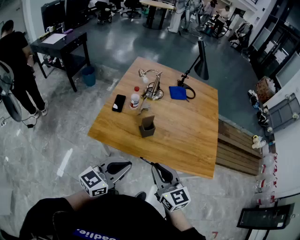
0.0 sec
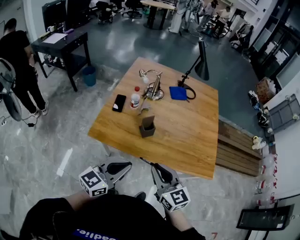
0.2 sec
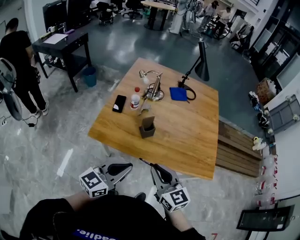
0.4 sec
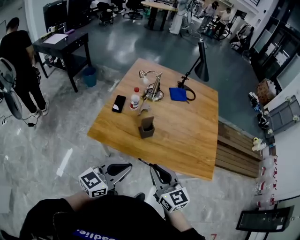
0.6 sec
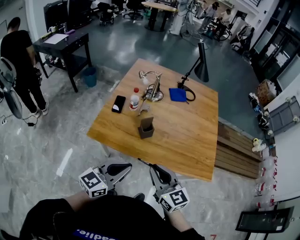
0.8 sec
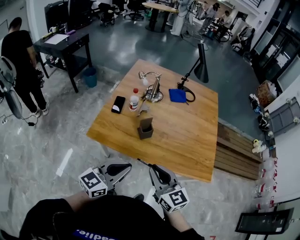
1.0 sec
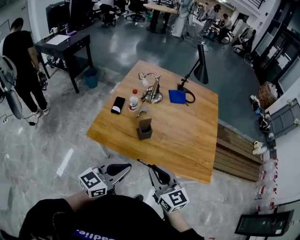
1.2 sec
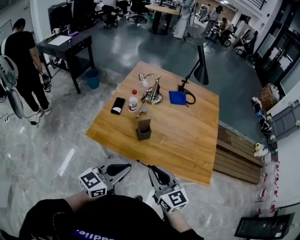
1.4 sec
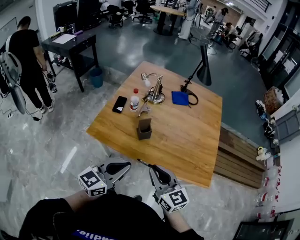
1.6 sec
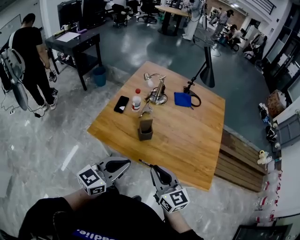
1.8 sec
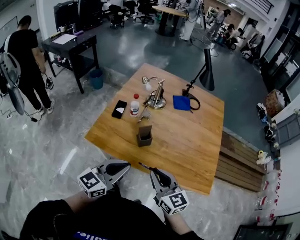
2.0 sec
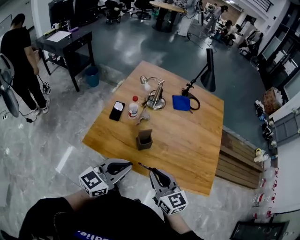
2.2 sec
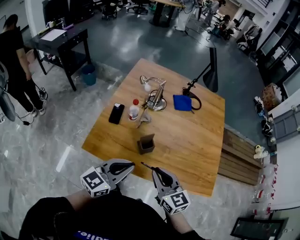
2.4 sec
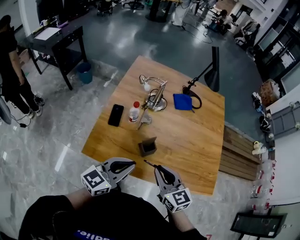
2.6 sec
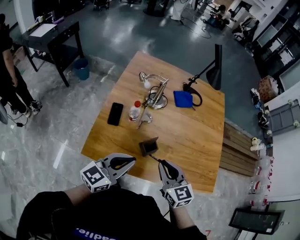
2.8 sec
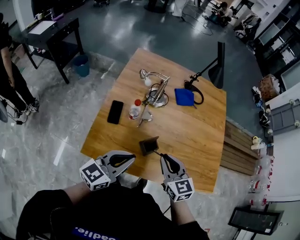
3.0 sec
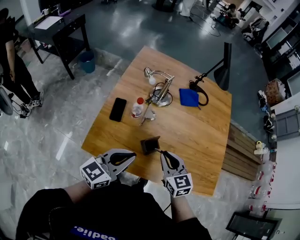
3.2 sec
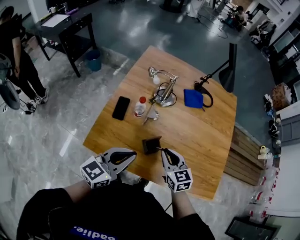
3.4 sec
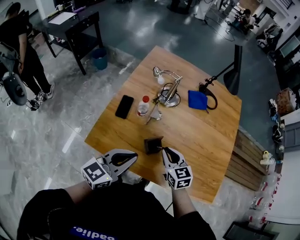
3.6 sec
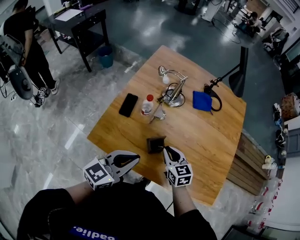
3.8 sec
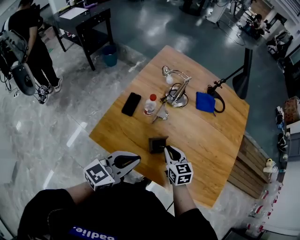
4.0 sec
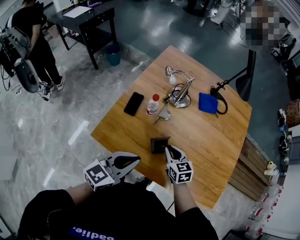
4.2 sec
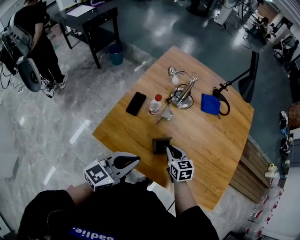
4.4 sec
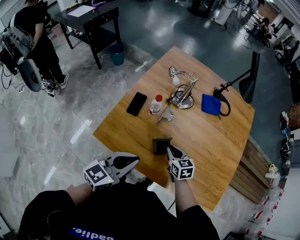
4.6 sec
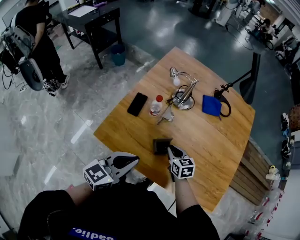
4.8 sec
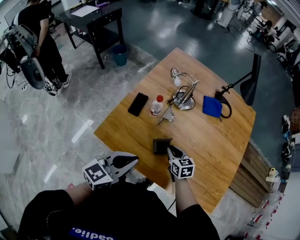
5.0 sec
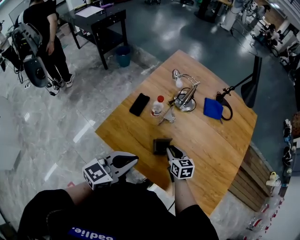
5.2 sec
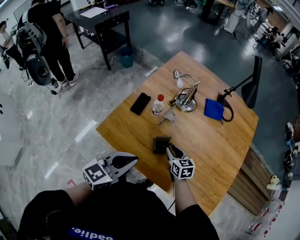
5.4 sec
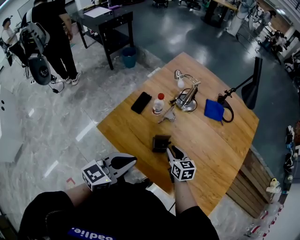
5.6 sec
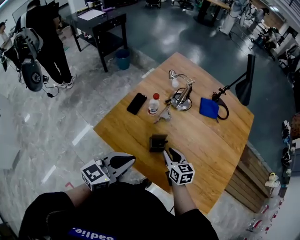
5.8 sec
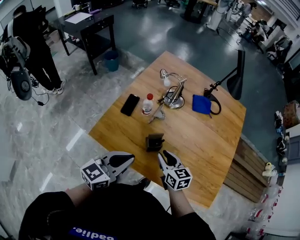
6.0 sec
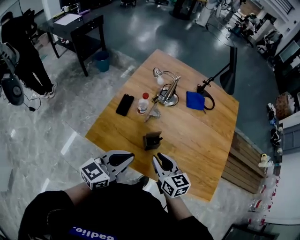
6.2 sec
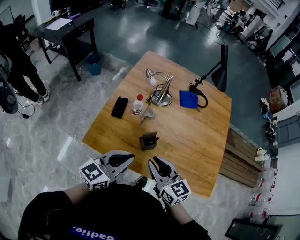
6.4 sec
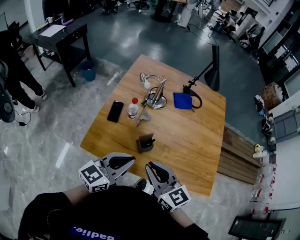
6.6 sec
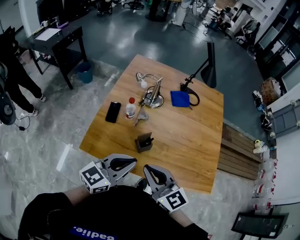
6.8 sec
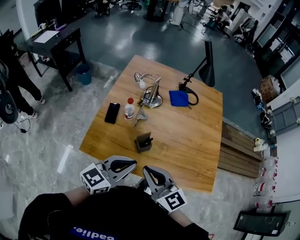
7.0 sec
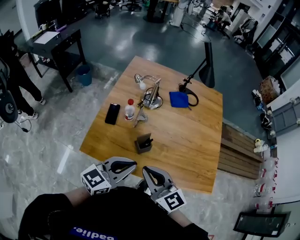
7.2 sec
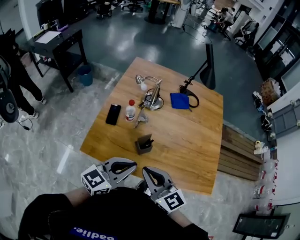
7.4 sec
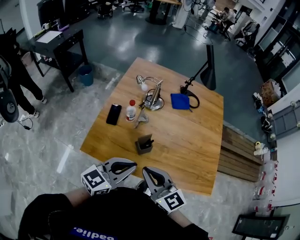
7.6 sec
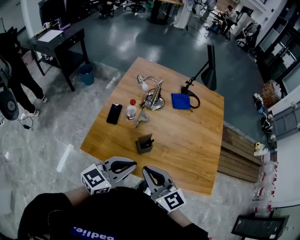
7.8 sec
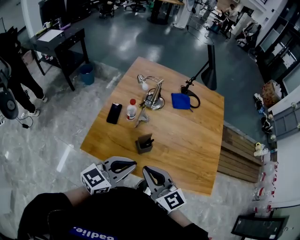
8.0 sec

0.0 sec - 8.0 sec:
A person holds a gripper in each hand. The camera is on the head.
0.0 sec - 1.6 sec: The left gripper moves to the right, approximately 5 cm; the right gripper ends up approximately 5 cm from where it was.
1.6 sec - 3.2 sec: The left gripper moves forward and to the left, roughly 20 cm; the right gripper is displaced forward by roughly 25 cm, and changes its angle by approximately 20 degrees.
3.2 sec - 4.8 sec: The right gripper travels downward and forward by approximately 15 cm.
4.8 sec - 6.4 sec: The left gripper shifts by about 5 cm; the right gripper heads upward and backward, covering approximately 25 cm, and changes its angle by some 20 degrees.
6.4 sec - 8.0 sec: The right gripper ends up some 5 cm from where it was, and closes.

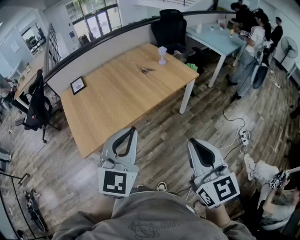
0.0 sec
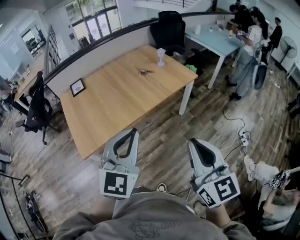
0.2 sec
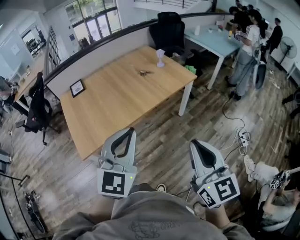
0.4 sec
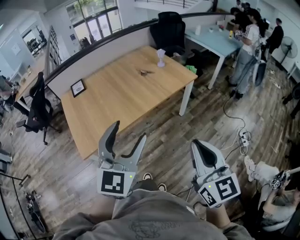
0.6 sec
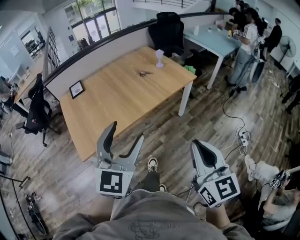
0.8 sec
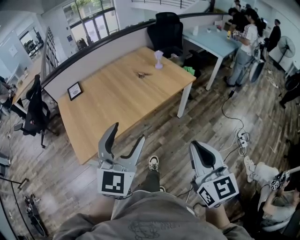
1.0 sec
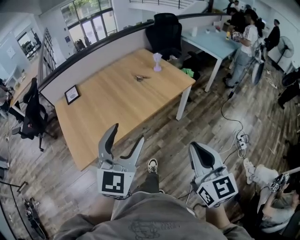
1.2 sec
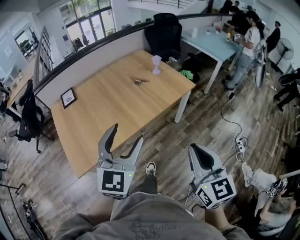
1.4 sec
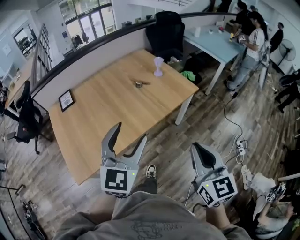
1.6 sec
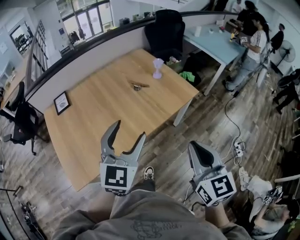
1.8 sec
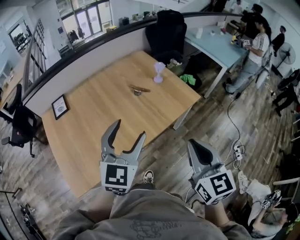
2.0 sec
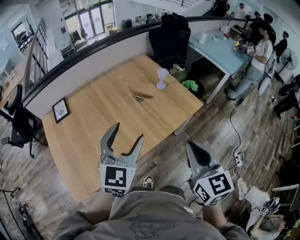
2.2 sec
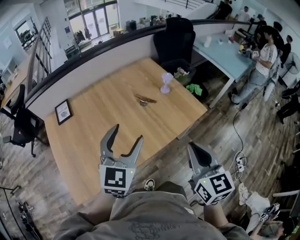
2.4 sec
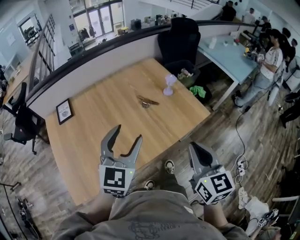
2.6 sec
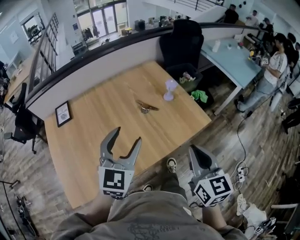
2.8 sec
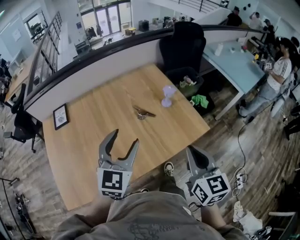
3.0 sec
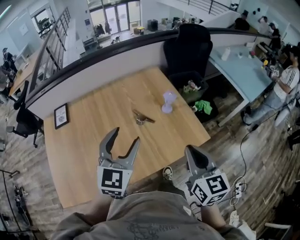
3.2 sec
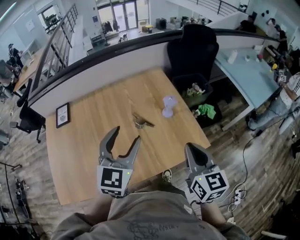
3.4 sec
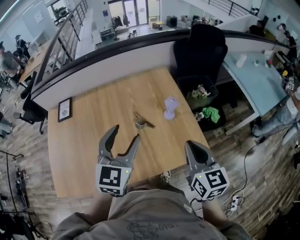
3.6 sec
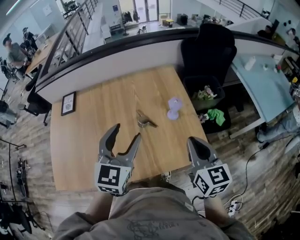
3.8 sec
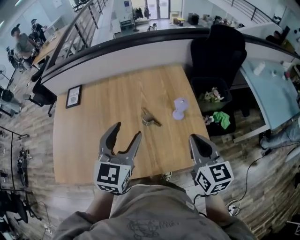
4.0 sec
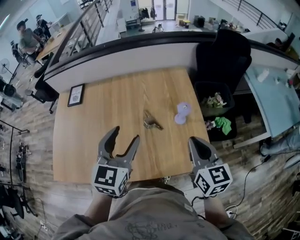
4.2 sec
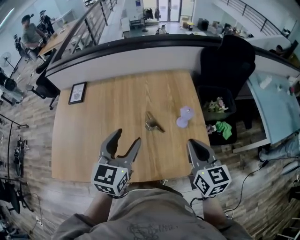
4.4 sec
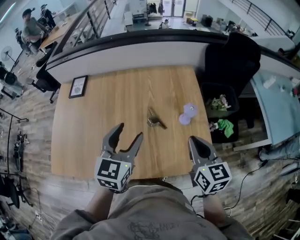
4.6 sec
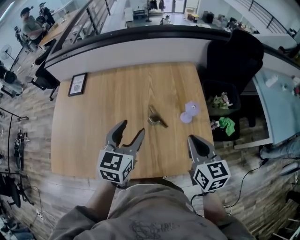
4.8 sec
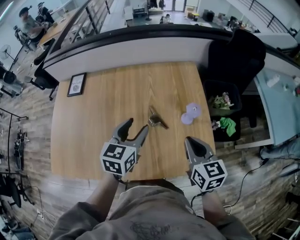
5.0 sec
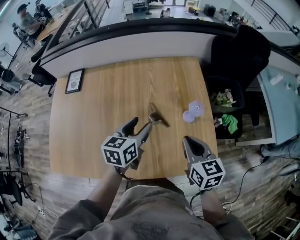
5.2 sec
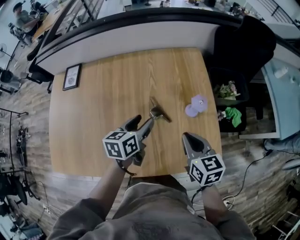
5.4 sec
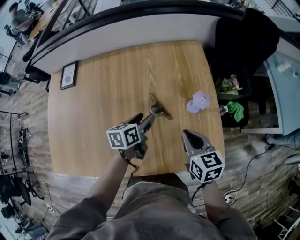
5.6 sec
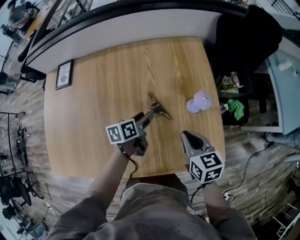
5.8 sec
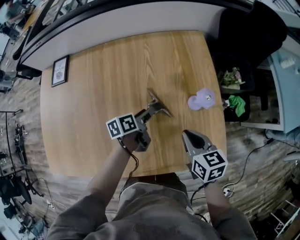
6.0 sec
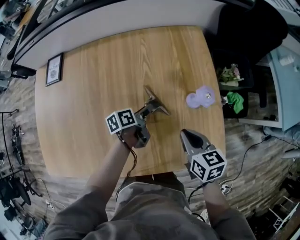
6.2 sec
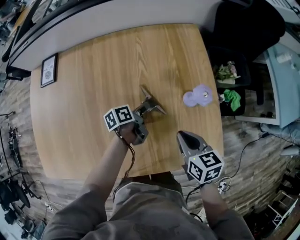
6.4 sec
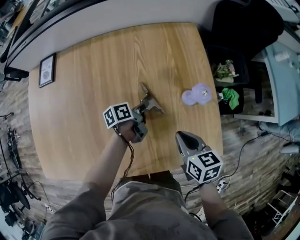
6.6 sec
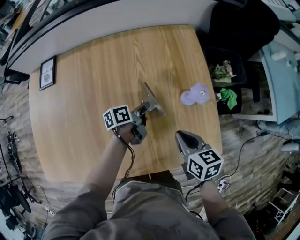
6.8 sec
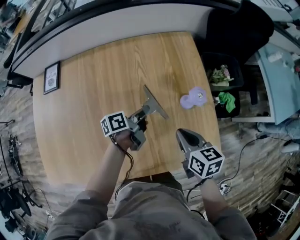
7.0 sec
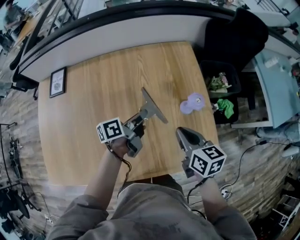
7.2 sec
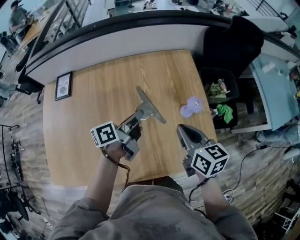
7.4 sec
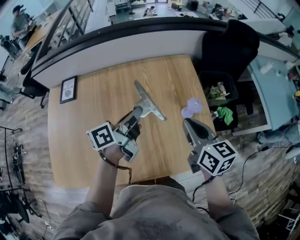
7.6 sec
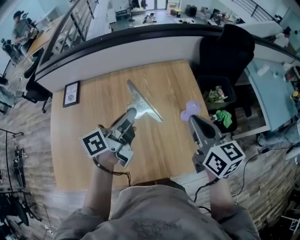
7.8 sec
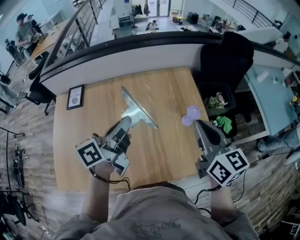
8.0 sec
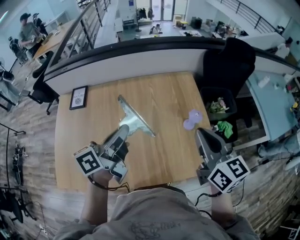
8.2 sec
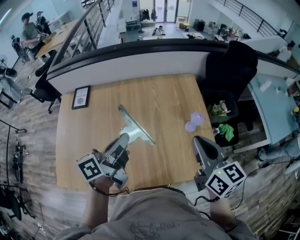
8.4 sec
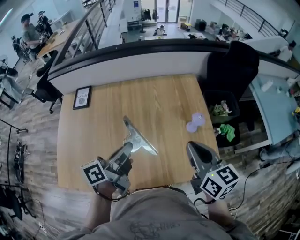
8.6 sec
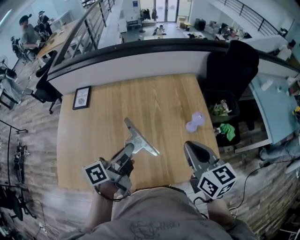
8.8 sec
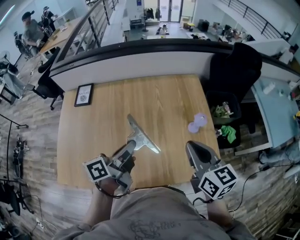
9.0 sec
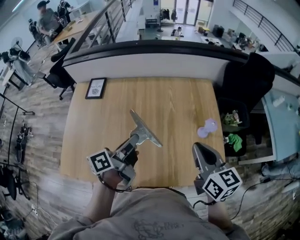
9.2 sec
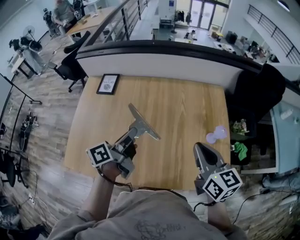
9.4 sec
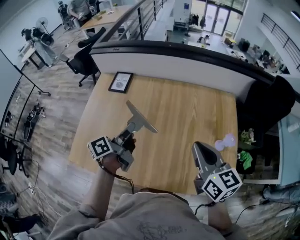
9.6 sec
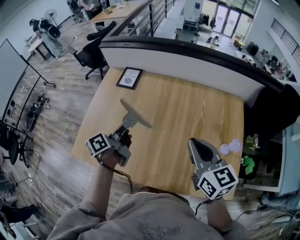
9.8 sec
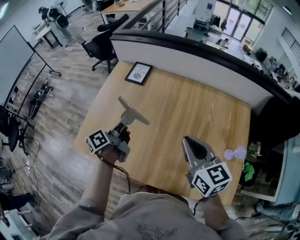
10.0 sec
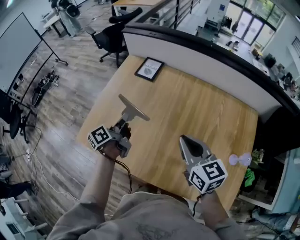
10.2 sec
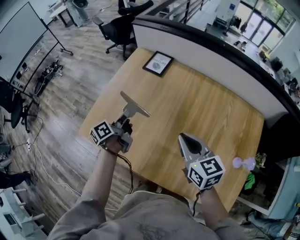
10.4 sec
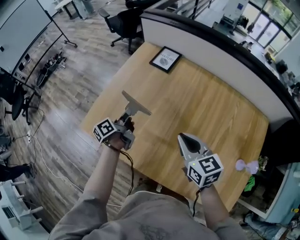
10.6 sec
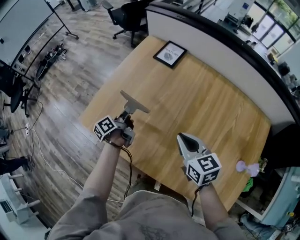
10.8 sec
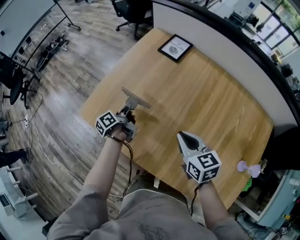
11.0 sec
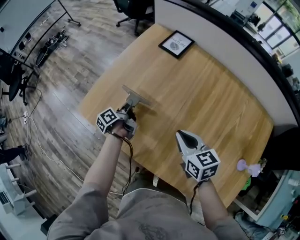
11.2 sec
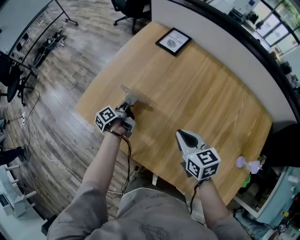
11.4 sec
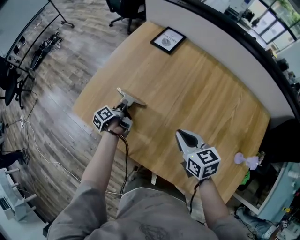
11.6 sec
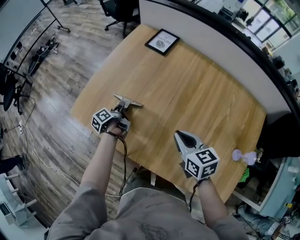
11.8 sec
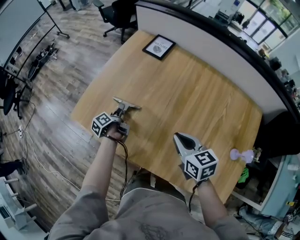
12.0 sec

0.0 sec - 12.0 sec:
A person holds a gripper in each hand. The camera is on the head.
0.0 sec - 1.6 sec: The two grippers go roughly 20 cm forward. The left gripper opens.
1.6 sec - 3.0 sec: The two grippers go some 30 cm forward.
3.0 sec - 4.4 sec: The right gripper heads forward and to the right, covering approximately 25 cm, and swivels about 30 degrees. Meanwhile the left gripper moves forward and to the right, roughly 15 cm, and changes its angle by about 30 degrees.
4.4 sec - 6.0 sec: The left gripper shifts approximately 35 cm downward and forward, and twists roughly 60 degrees counterclockwise, seen from behind, while the right gripper is displaced downward and forward by some 20 cm, and rotates roughly 20 degrees.
6.0 sec - 7.6 sec: Both grippers travel together upward, roughly 20 cm. The left gripper rotates approximately 30 degrees, and closes up.
7.6 sec - 9.0 sec: The right gripper goes some 10 cm backward and upward. The left gripper is displaced backward and to the left by approximately 15 cm.
9.0 sec - 10.4 sec: The right gripper moves about 35 cm, and swivels approximately 40 degrees. Meanwhile the left gripper ends up roughly 40 cm from where it was, and rotates some 50 degrees.
10.4 sec - 12.0 sec: The right gripper is displaced downward by some 10 cm, while the left gripper shifts approximately 15 cm downward, rotates about 30 degrees, and opens its fingers.

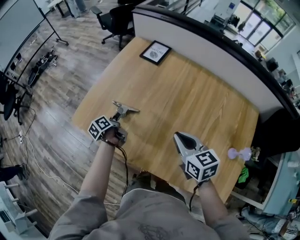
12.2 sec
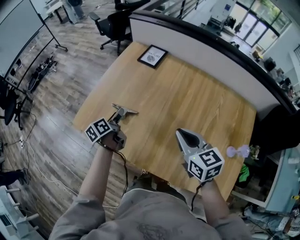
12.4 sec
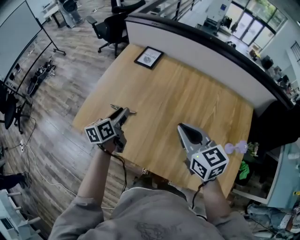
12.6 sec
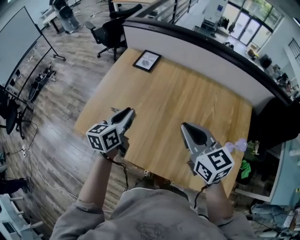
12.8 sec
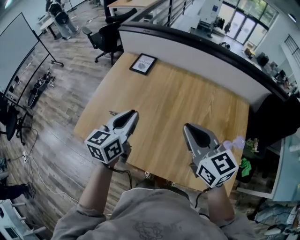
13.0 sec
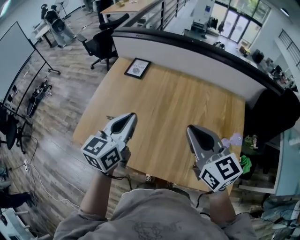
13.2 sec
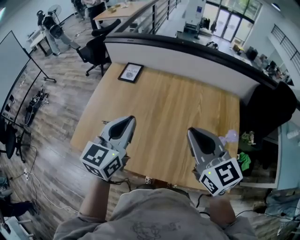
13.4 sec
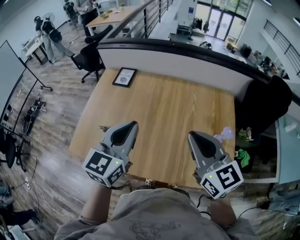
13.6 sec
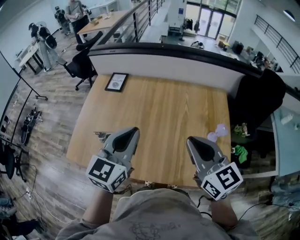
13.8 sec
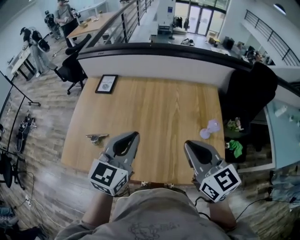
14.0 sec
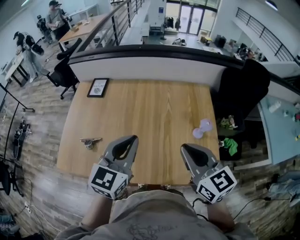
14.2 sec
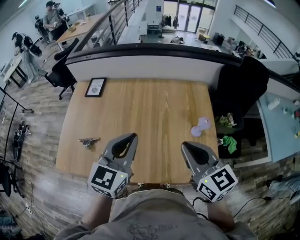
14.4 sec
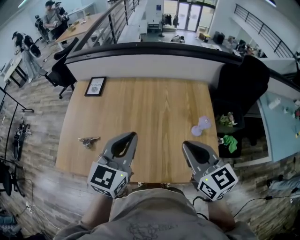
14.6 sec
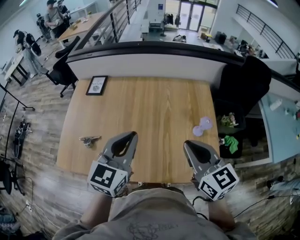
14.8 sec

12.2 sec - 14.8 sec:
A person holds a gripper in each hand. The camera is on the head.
12.2 sec - 13.4 sec: The left gripper shifts about 40 cm upward and to the right, twists roughly 70 degrees clockwise, seen from behind, and closes its fingers. The right gripper moves upward, to the right and backward, some 25 cm, and turns by approximately 30 degrees.
13.4 sec - 14.8 sec: Both grippers move to the right, about 15 cm.

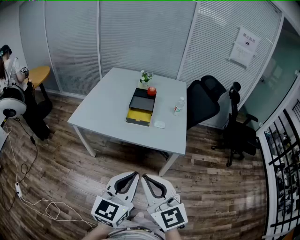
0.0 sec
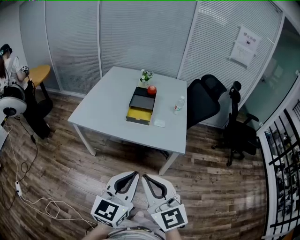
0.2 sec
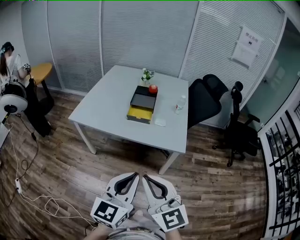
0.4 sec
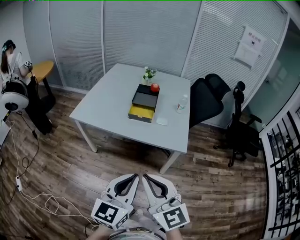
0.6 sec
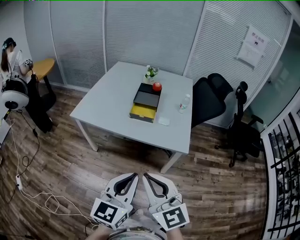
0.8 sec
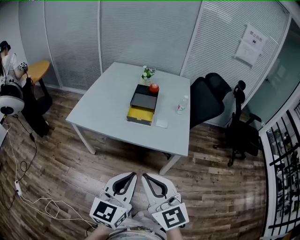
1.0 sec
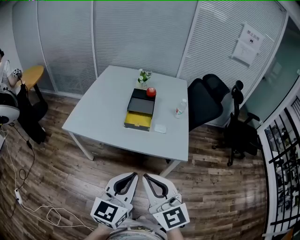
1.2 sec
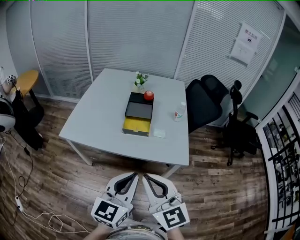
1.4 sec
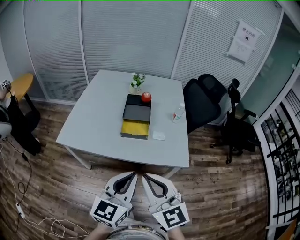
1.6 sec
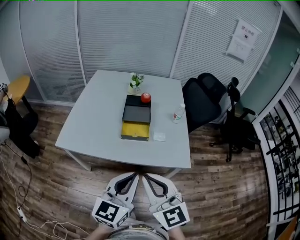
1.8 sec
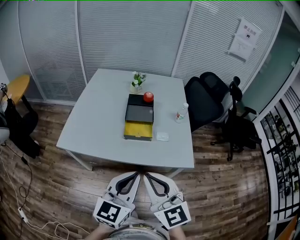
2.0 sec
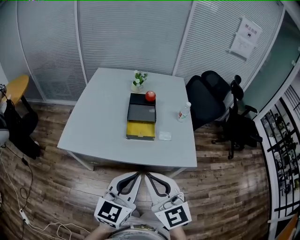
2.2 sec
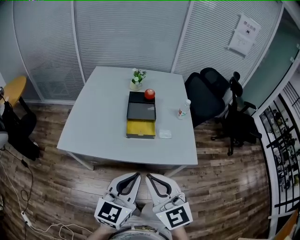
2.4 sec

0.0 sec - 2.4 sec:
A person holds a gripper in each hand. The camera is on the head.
0.0 sec - 1.2 sec: Both grippers travel together forward, some 10 cm.
1.2 sec - 2.4 sec: Both grippers move forward and to the left, approximately 15 cm.
